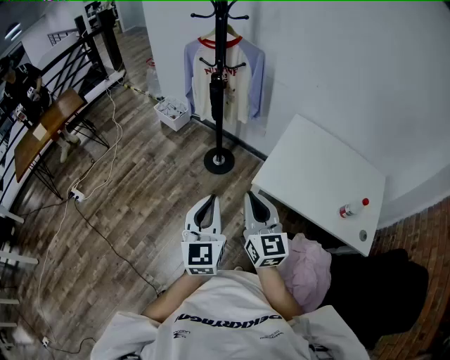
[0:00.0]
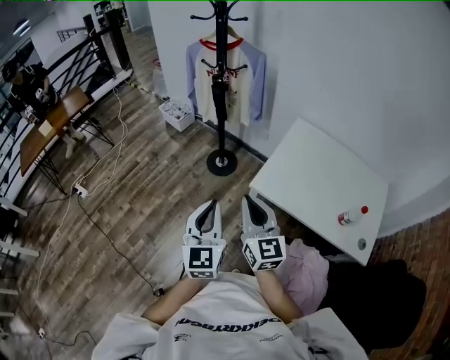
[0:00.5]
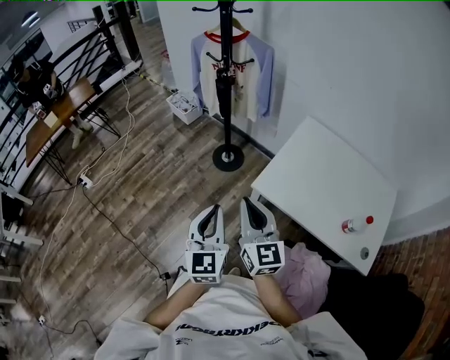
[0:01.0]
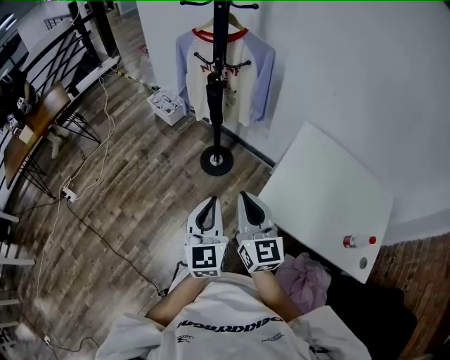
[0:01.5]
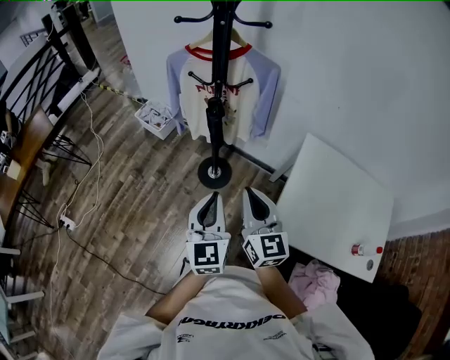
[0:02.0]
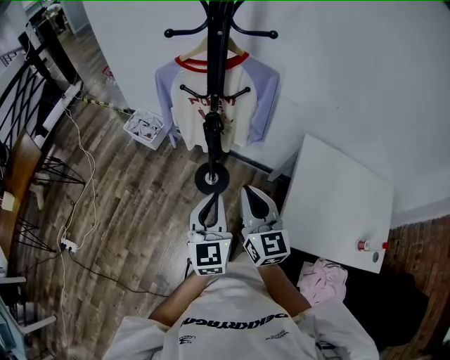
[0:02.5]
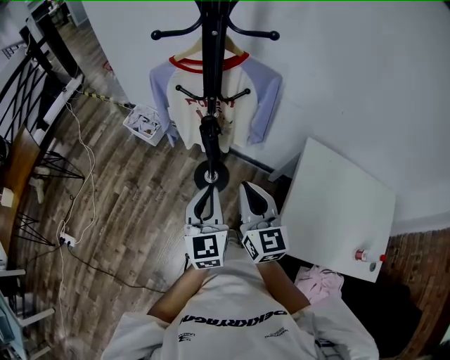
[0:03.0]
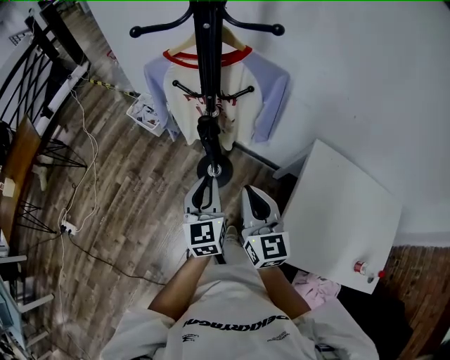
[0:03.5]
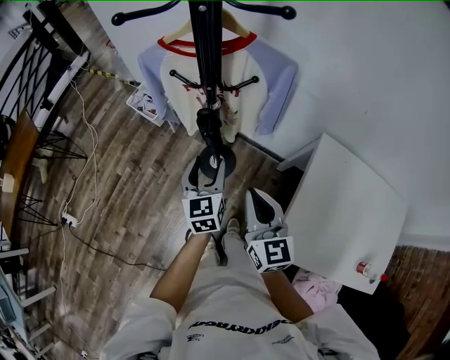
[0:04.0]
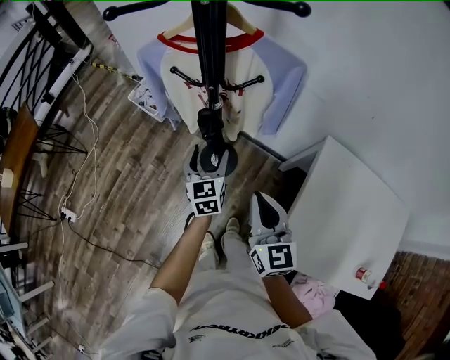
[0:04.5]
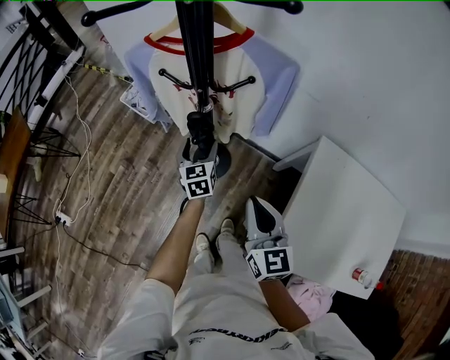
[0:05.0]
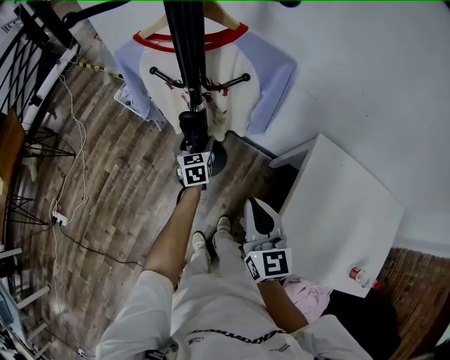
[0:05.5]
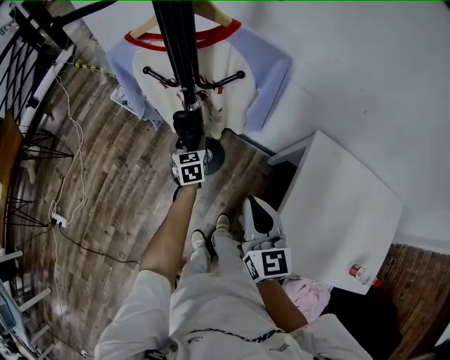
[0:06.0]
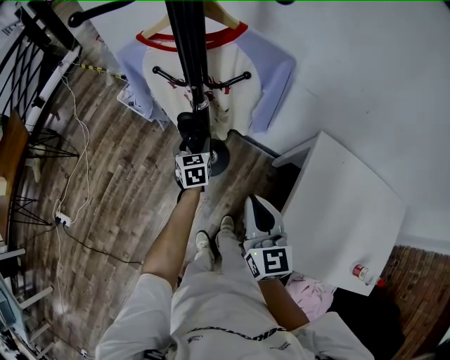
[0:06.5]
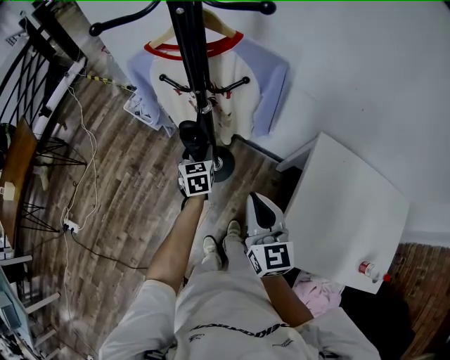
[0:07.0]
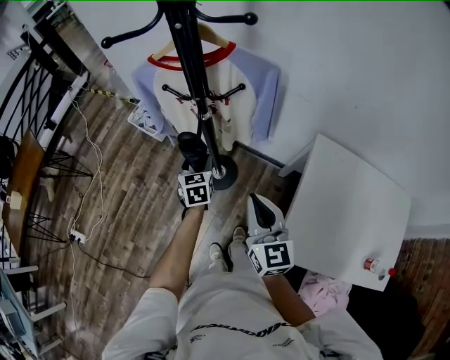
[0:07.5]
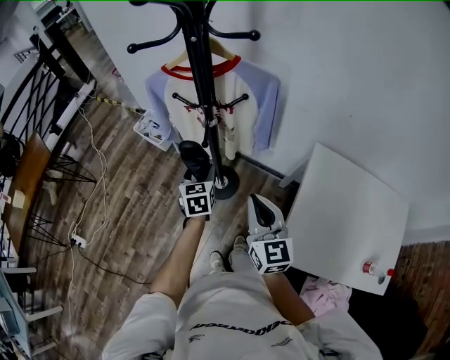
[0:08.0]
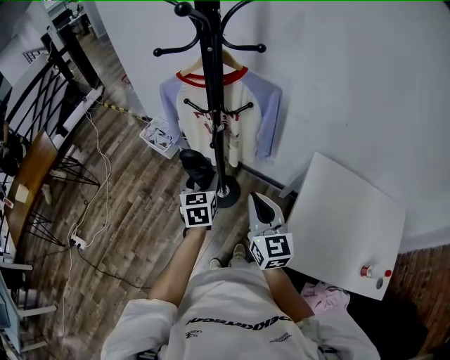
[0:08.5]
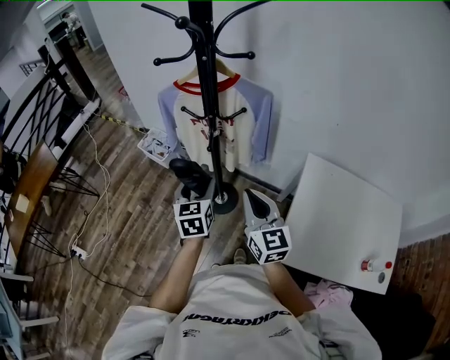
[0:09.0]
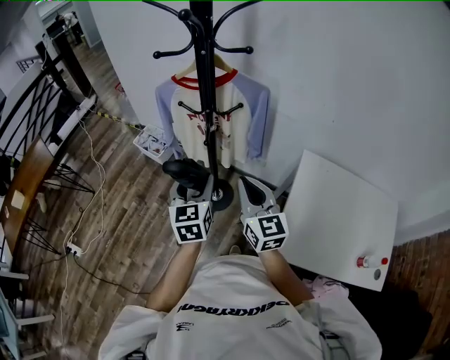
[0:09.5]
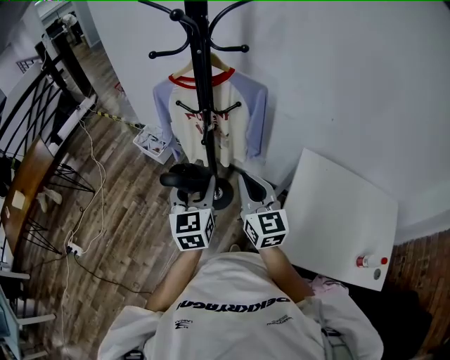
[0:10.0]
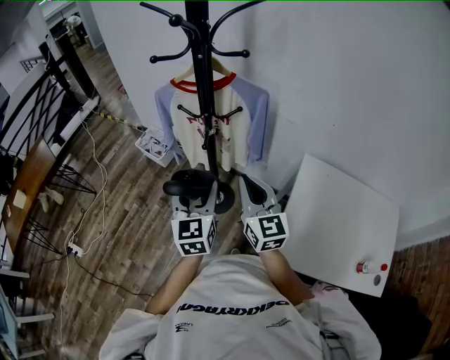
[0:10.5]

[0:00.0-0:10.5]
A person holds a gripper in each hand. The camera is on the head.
0.0 to 2.0 s: Both grippers travel together forward, some 35 cm.
2.0 to 4.0 s: The left gripper is displaced forward and downward by roughly 30 cm, and opens up; the right gripper heads forward and downward, covering about 15 cm.
4.0 to 6.5 s: The left gripper travels downward and forward by roughly 20 cm.
6.5 to 8.5 s: The right gripper shifts about 10 cm upward and backward. The left gripper goes some 25 cm upward and backward.
8.5 to 10.5 s: The left gripper heads upward and backward, covering about 15 cm; the right gripper shifts by roughly 5 cm.

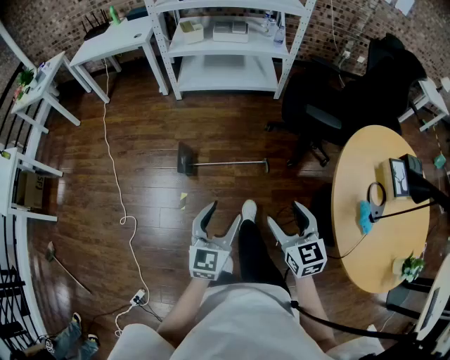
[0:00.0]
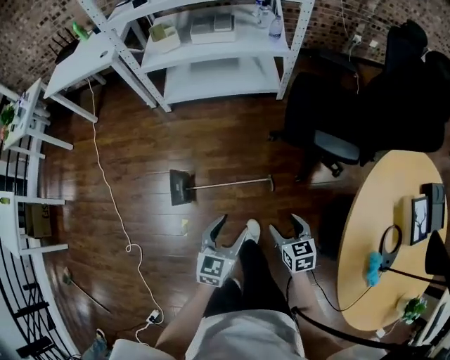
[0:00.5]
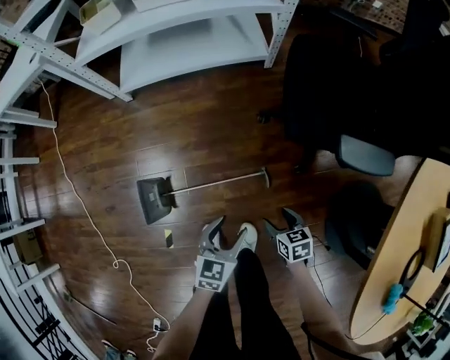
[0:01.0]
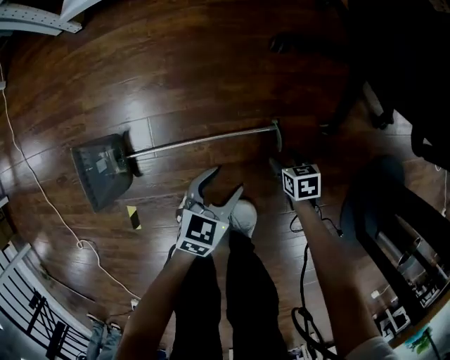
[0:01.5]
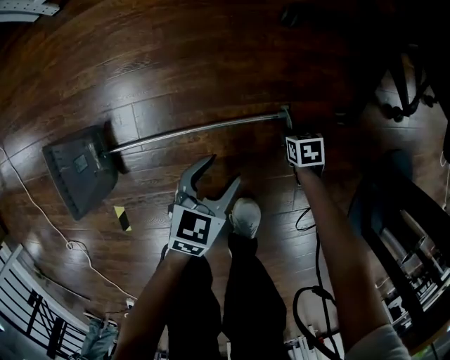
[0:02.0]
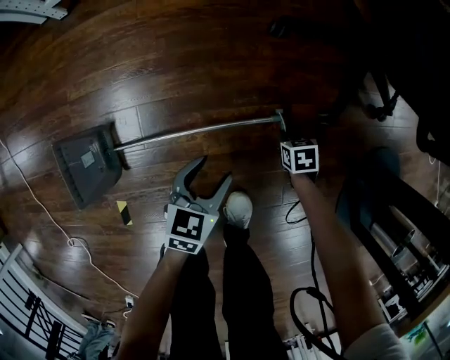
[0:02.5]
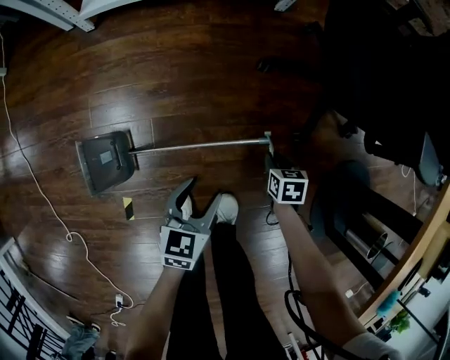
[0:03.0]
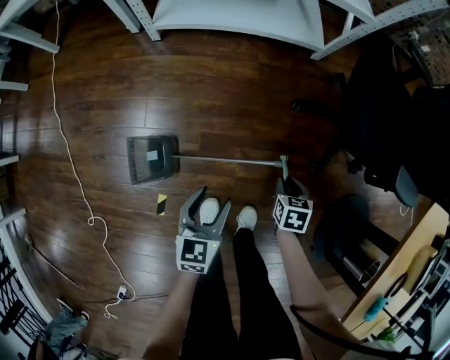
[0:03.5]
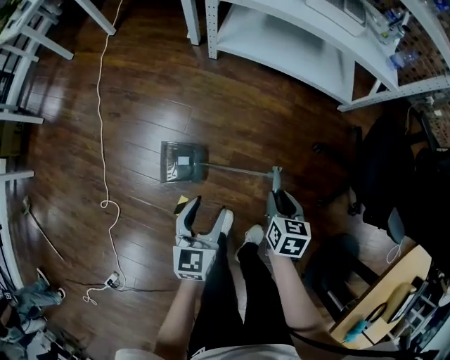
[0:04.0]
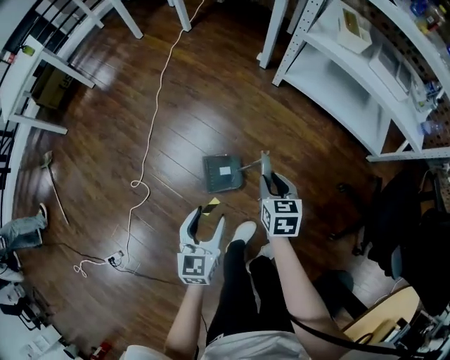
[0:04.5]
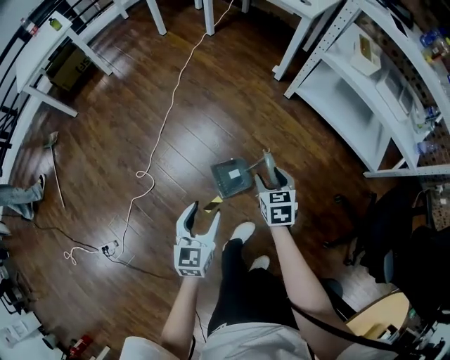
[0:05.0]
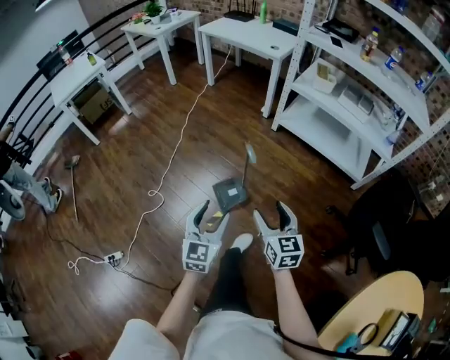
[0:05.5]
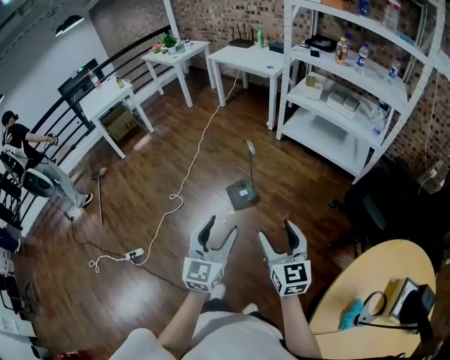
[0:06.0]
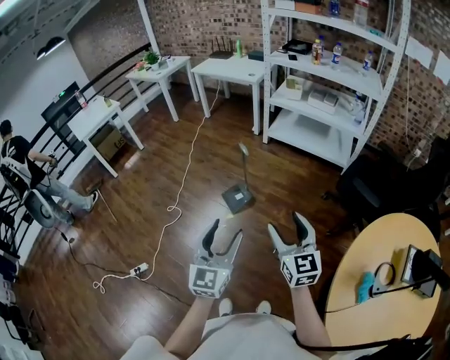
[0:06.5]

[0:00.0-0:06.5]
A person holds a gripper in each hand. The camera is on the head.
0.0 to 2.0 s: Both grippers are carried approximately 40 cm. The grippers both shift downward by about 80 cm. The left gripper swivels approximately 40 degrees. Meanwhile the right gripper tilts its fingers about 50 degrees downward, and closes up.
2.0 to 4.5 s: The two grippers travel together, about 50 cm. Both grippers move upward, some 60 cm. The left gripper rotates some 70 degrees, while the right gripper points its fingers about 30 degrees further upward.
4.5 to 6.5 s: The pair of grippers is taken backward, approximately 50 cm. Both grippers travel together upward, approximately 40 cm. The left gripper swivels about 30 degrees, while the right gripper tilts its fingers about 40 degrees upward, and opens its fingers.

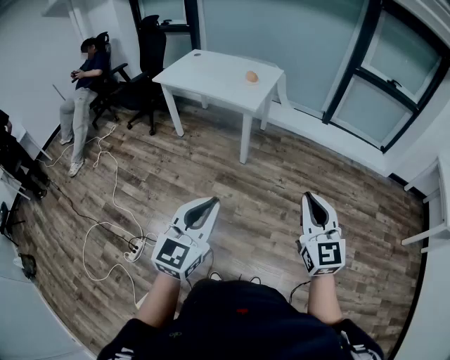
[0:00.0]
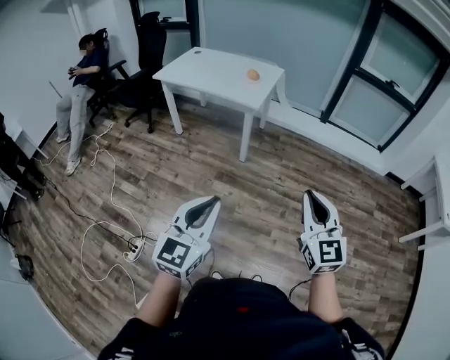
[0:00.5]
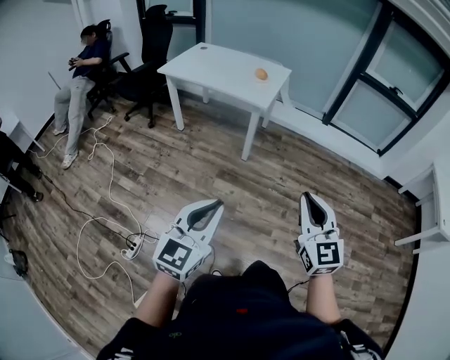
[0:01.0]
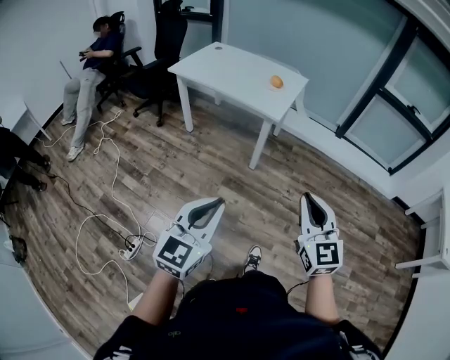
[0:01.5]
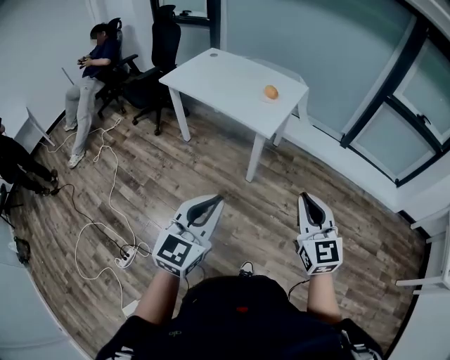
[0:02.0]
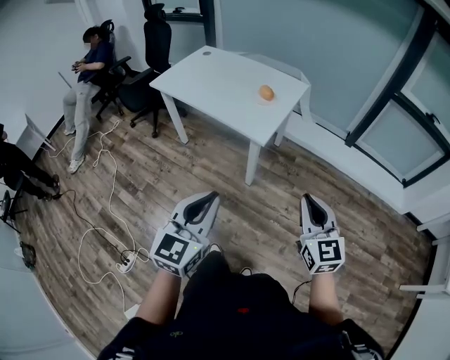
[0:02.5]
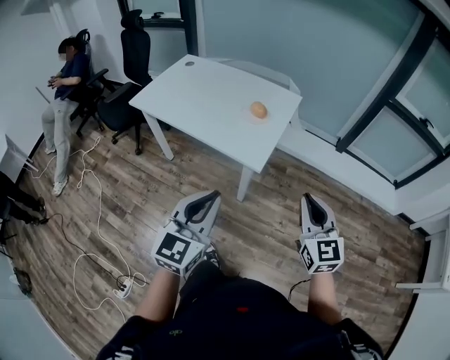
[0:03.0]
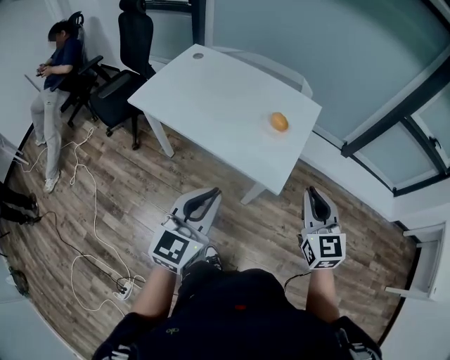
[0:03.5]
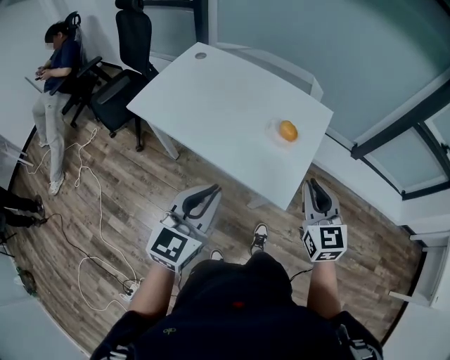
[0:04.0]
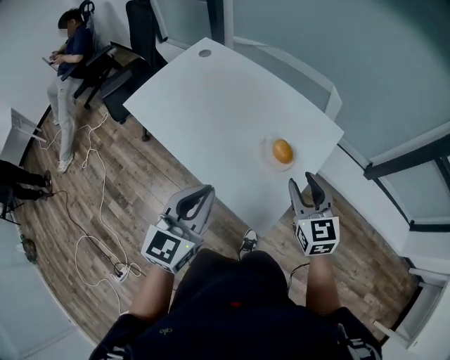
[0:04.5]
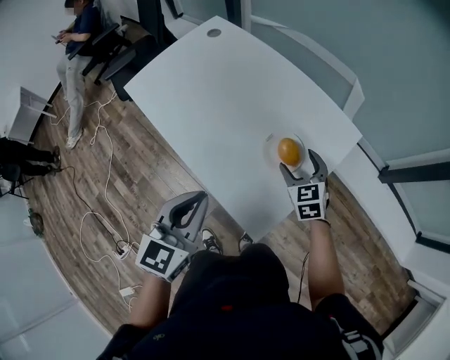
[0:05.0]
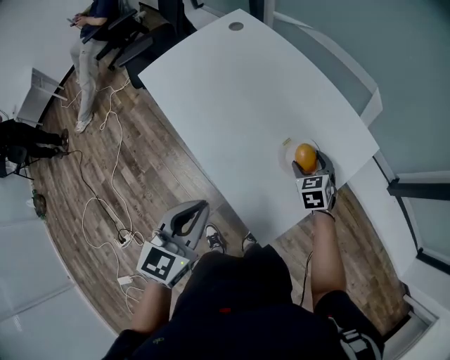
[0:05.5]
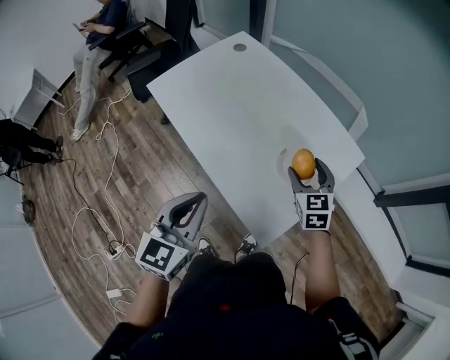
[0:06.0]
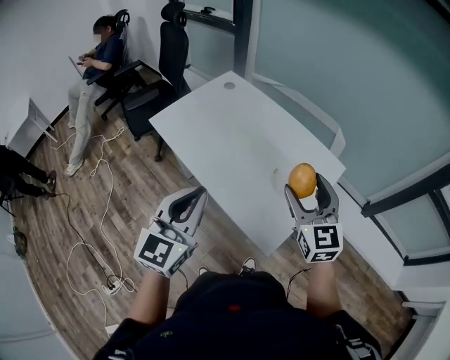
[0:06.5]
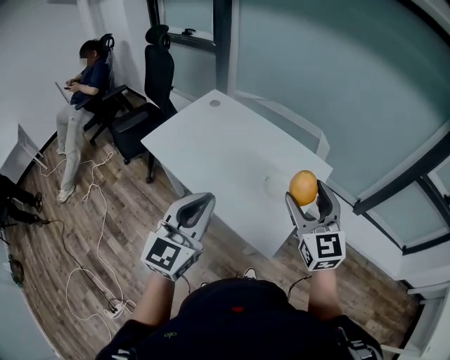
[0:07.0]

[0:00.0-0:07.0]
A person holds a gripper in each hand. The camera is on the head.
0.0 to 2.0 s: Both grippers travel together forward, approximately 30 cm.
2.0 to 3.5 s: The two grippers travel together, forward, about 50 cm.
3.5 to 5.0 s: The left gripper moves forward, roughly 25 cm, and turns by approximately 20 degrees. The right gripper shifts about 50 cm forward and downward, turns by approximately 30 degrees, and opens.
5.0 to 7.0 s: The left gripper goes approximately 20 cm upward, to the left and backward, and swivels some 20 degrees. Meanwhile the right gripper travels upward and backward by about 35 cm, and tilts its fingers roughly 30 degrees upward.

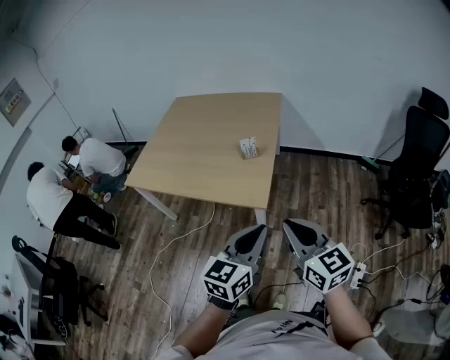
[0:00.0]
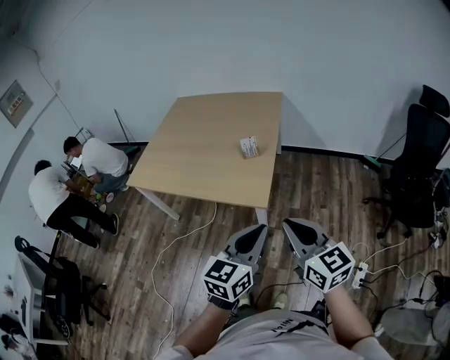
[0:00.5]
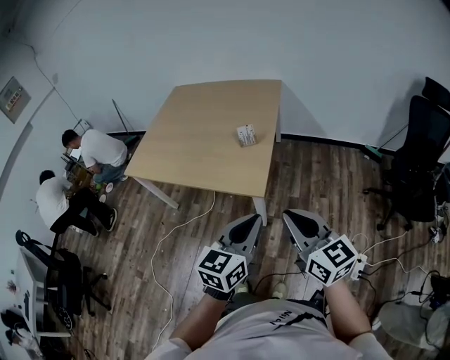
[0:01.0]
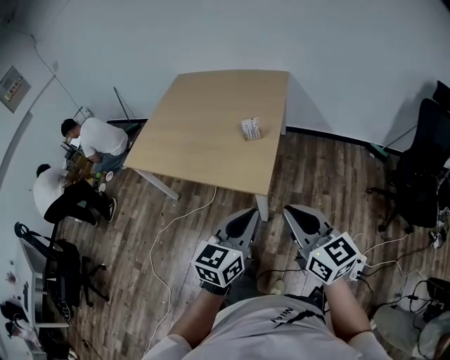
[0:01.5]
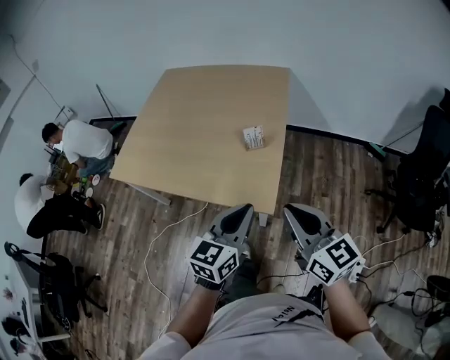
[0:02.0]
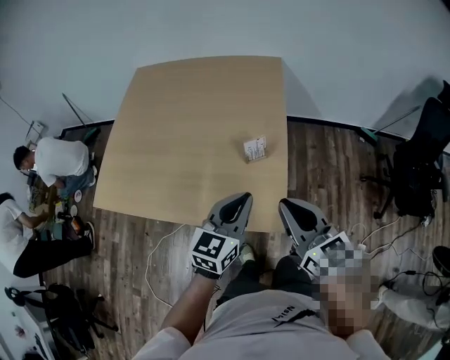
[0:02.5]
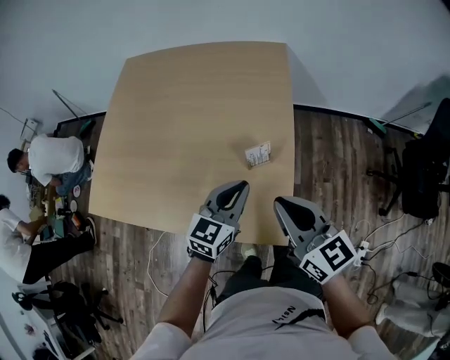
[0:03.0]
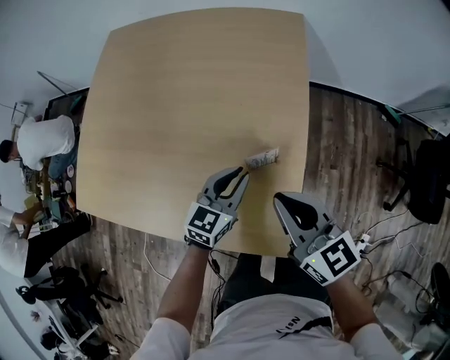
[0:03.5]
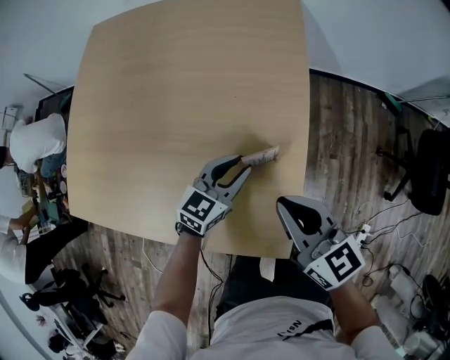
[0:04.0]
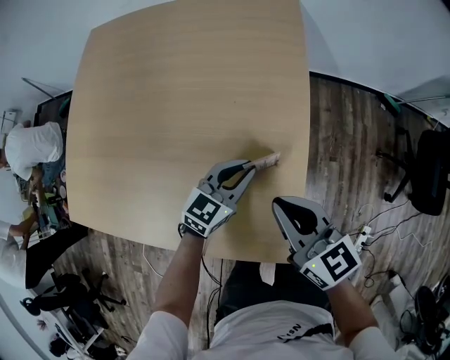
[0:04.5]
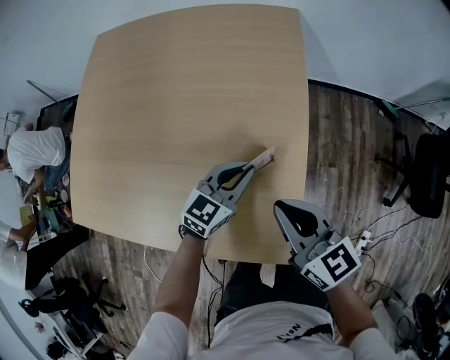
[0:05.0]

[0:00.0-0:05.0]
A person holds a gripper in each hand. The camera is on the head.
0.0 to 2.5 s: Both grippers move forward, approximately 30 cm.
2.5 to 5.0 s: The grippers both shift forward and downward by approximately 25 cm.
